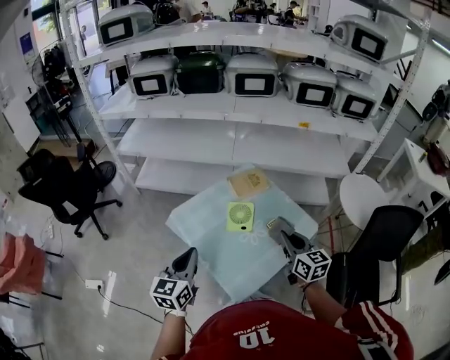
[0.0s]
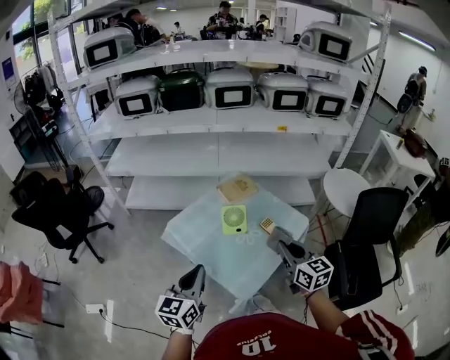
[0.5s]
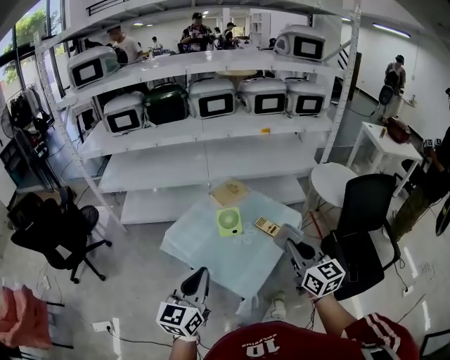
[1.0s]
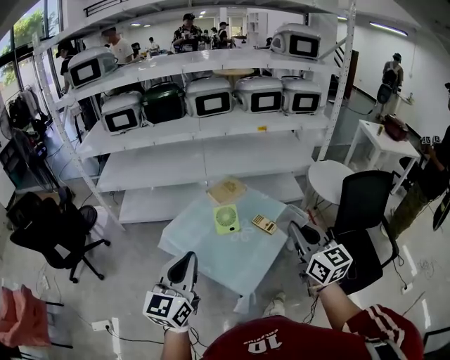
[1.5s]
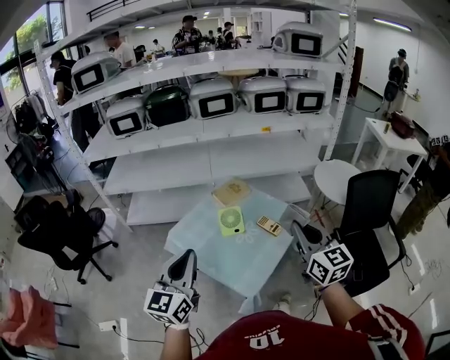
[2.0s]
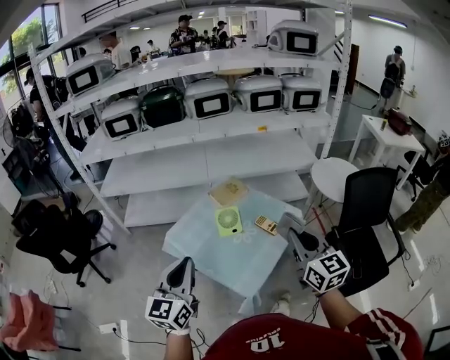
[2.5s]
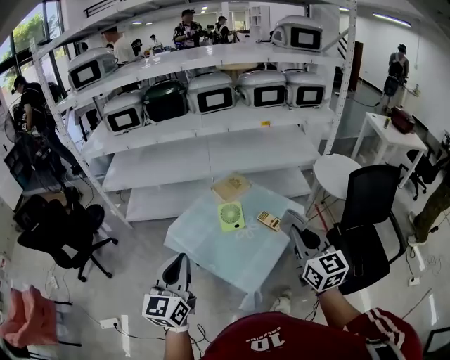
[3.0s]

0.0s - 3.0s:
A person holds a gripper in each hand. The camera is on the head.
0.0s - 1.5s: The grippers both shift upward and backward by about 20 cm. The left gripper rotates approximately 20 degrees; the right gripper turns by roughly 20 degrees.
1.5s - 3.0s: The grippers stay close to where they were, moving slightly.

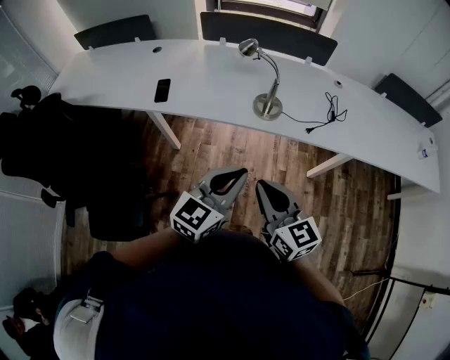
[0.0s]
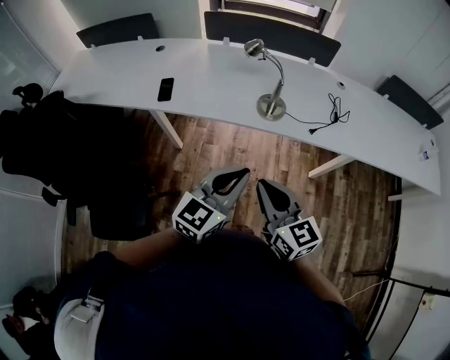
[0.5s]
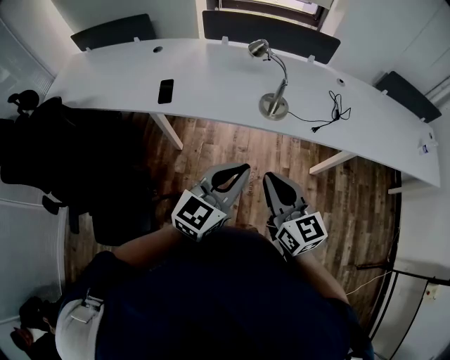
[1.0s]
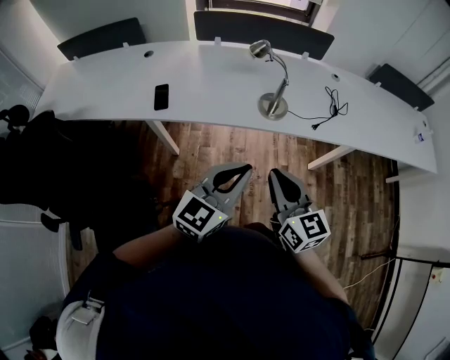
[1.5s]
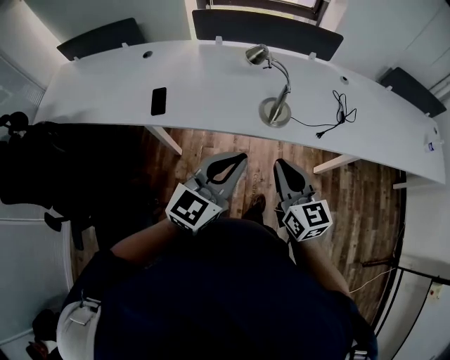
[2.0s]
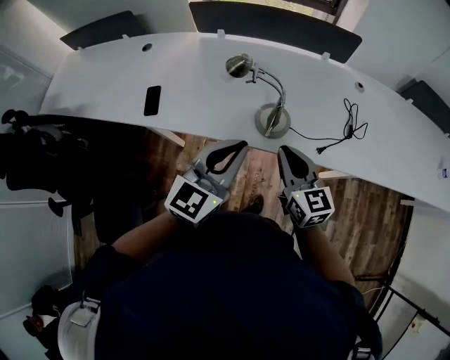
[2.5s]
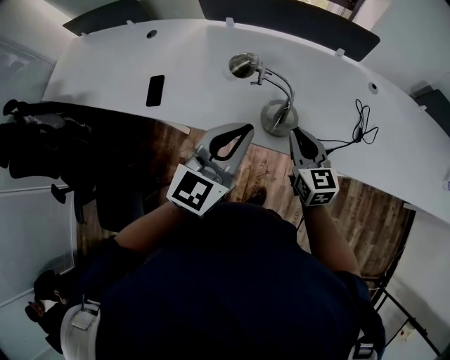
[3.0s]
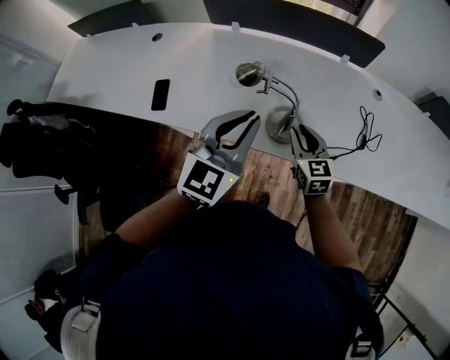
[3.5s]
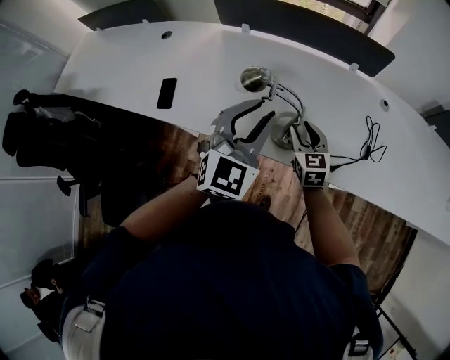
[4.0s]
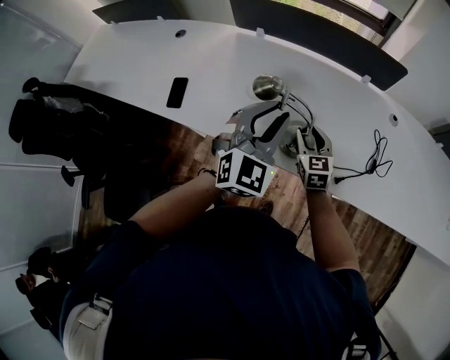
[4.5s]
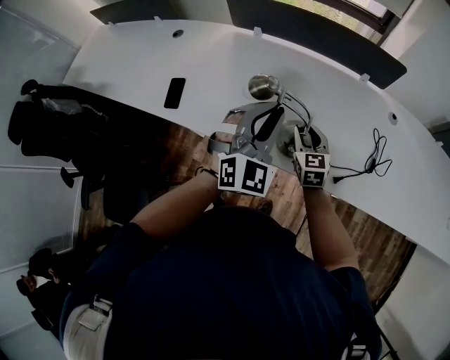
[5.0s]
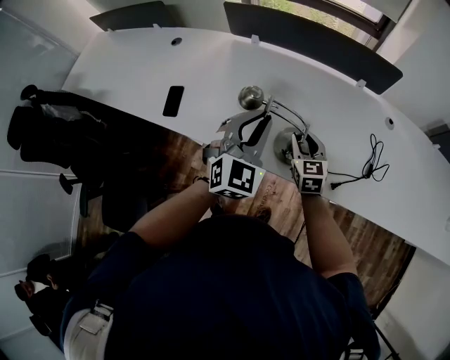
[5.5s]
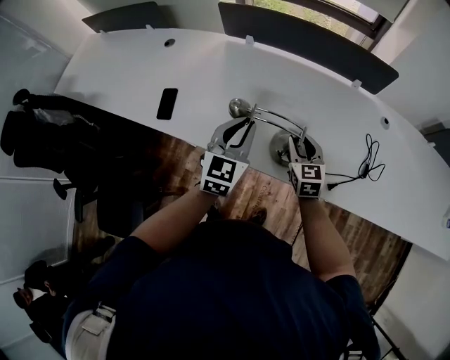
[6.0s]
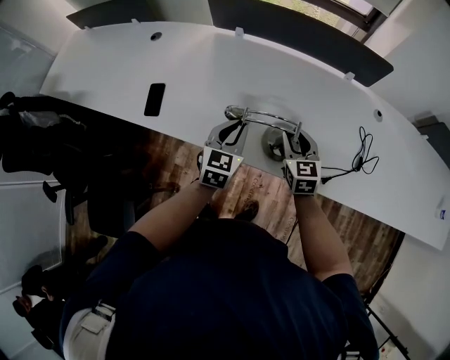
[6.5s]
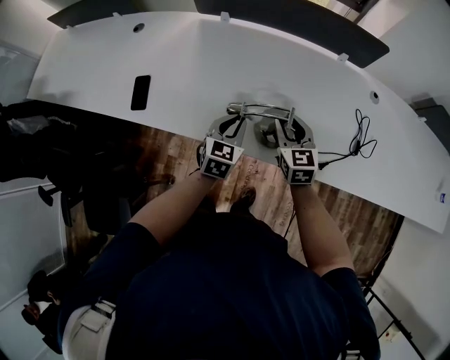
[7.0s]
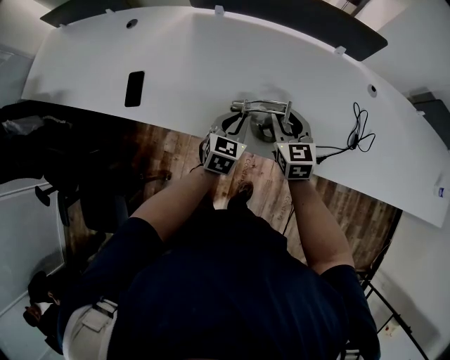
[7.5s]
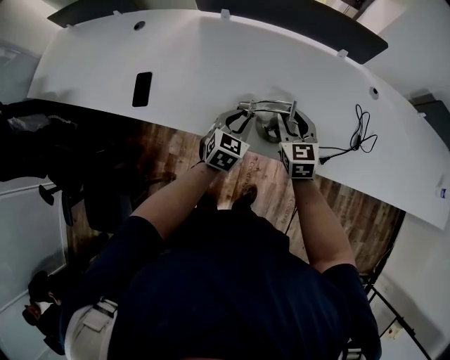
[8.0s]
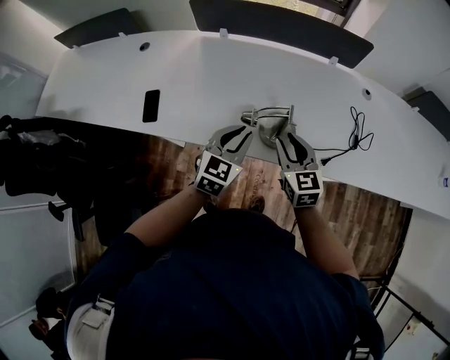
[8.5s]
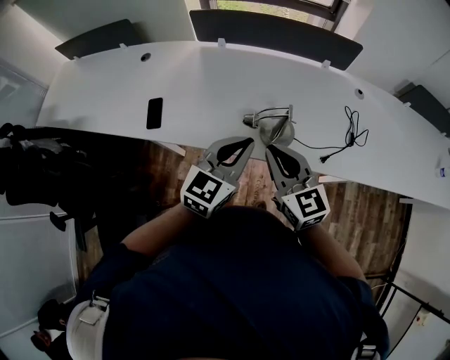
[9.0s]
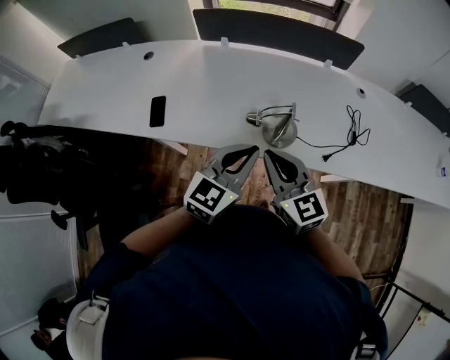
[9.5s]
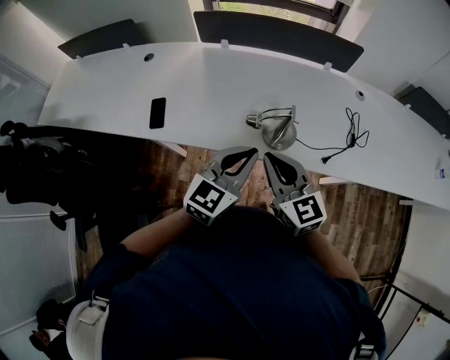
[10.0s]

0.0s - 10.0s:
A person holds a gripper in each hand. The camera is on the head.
0.0s - 2.0s: The right gripper heads forward, covering about 15 cm. Meanwhile the left gripper moves forward and to the left, about 15 cm.
2.0s - 4.0s: The left gripper is displaced forward by about 25 cm, rotates approximately 30 degrees, and opens up. Meanwhile the right gripper shifts some 35 cm forward and downward, rotates some 20 degrees, and opens up.
4.0s - 6.0s: The left gripper is displaced downward, to the left and forward by about 10 cm, and swivels about 20 degrees.
6.0s - 8.0s: The left gripper shifts roughly 15 cm downward, and changes its angle by roughly 20 degrees.
8.0s - 10.0s: The right gripper is displaced backward, upward and to the left by some 25 cm, rotates some 20 degrees, and closes, while the left gripper shifts some 25 cm upward and backward, and turns by roughly 30 degrees.

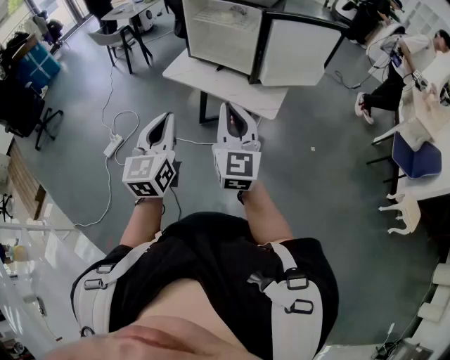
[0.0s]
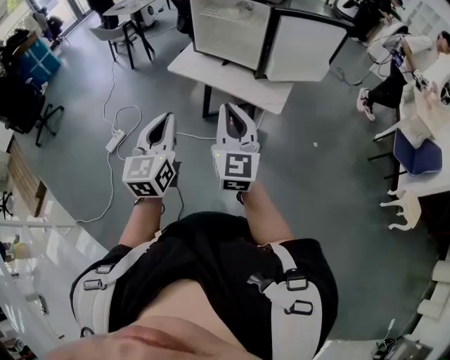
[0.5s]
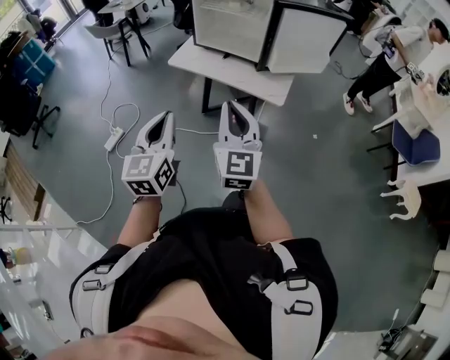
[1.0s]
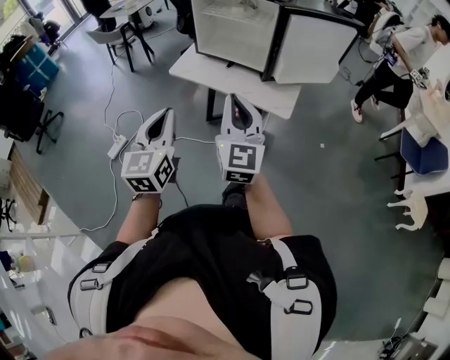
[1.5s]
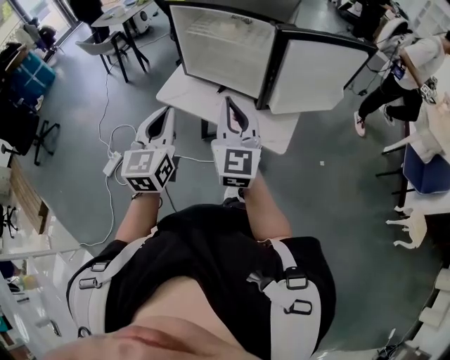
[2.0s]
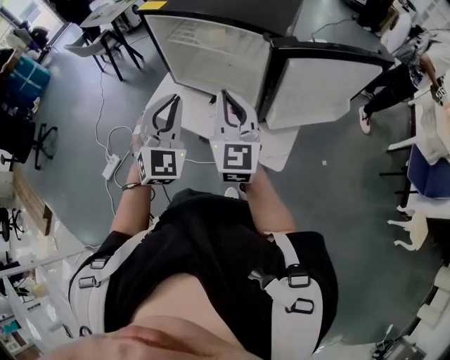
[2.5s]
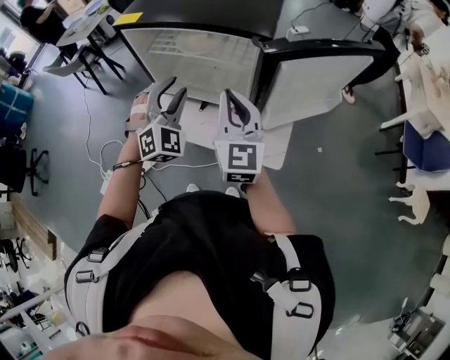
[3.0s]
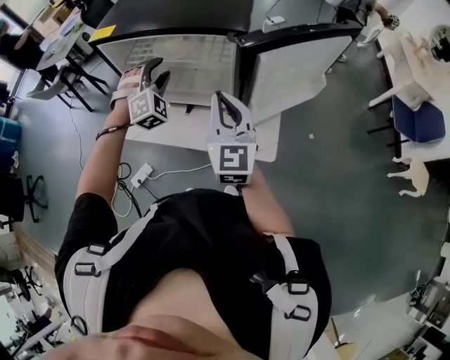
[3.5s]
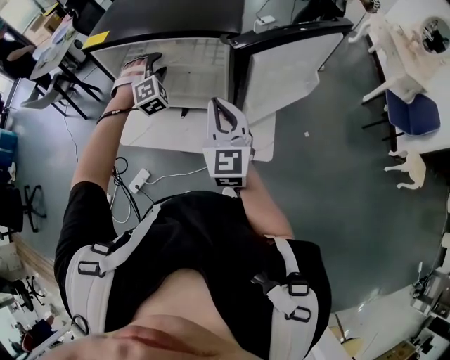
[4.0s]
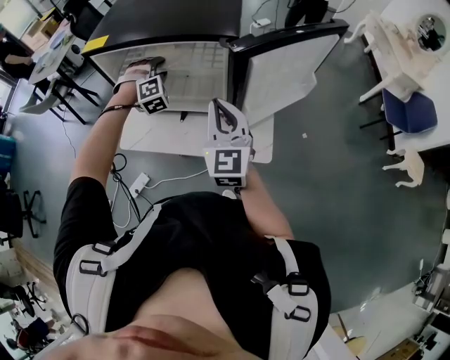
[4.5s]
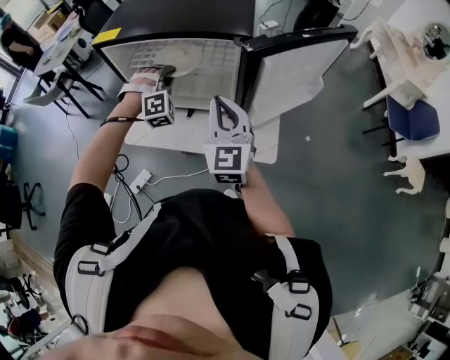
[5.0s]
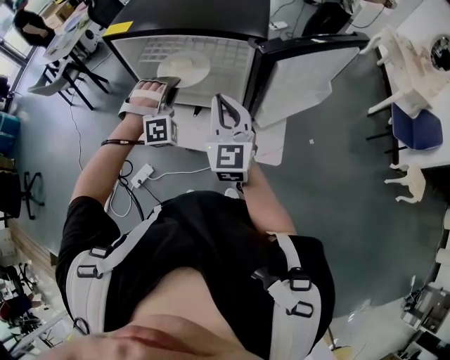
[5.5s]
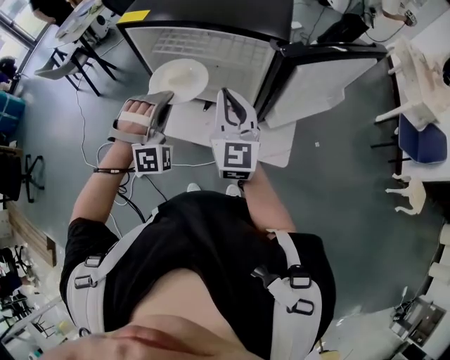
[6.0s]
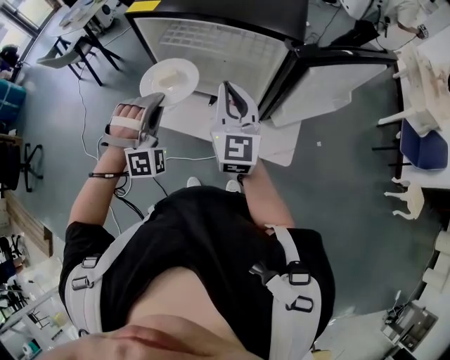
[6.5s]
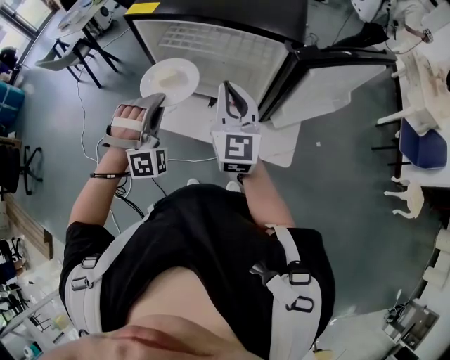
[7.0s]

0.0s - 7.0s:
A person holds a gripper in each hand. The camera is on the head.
0.0s - 2.0s: The grippers both shift forward by approximately 20 cm.
2.0s - 3.5s: The left gripper shifts about 35 cm forward, twists approximately 70 degrees clockwise, seen from behind, and opens up; the right gripper heads forward, covering some 15 cm.
3.5s - 5.0s: The left gripper closes.
5.0s - 7.0s: The right gripper shifts approximately 5 cm to the left. The left gripper moves backward and to the left, about 20 cm.

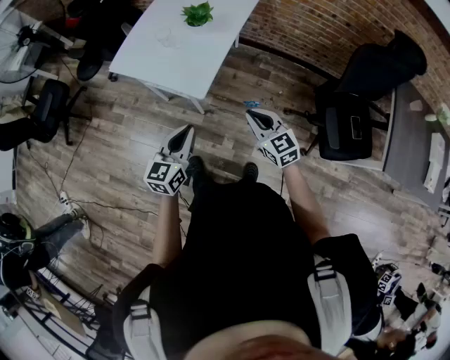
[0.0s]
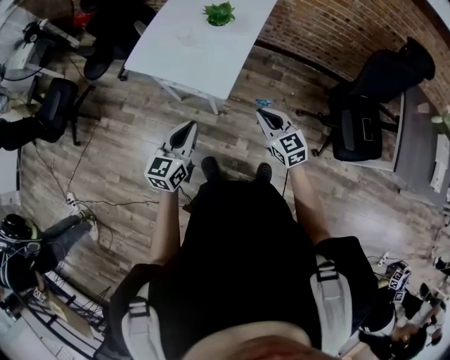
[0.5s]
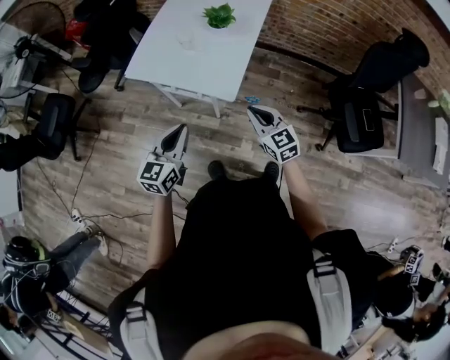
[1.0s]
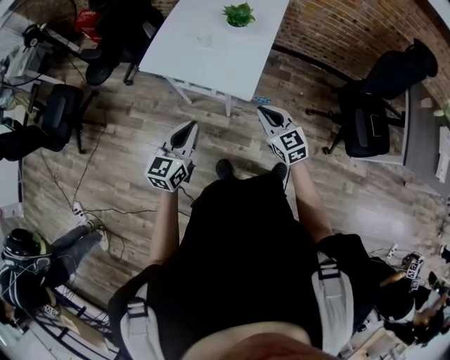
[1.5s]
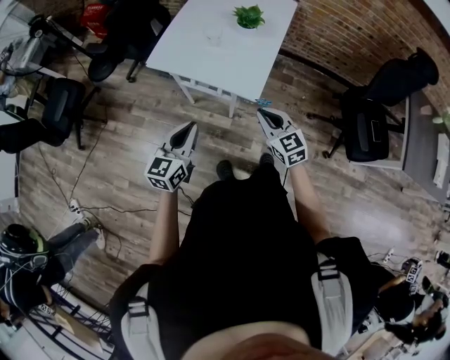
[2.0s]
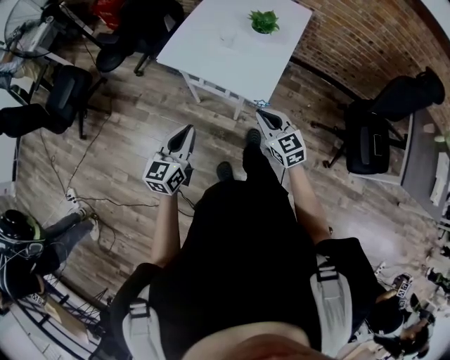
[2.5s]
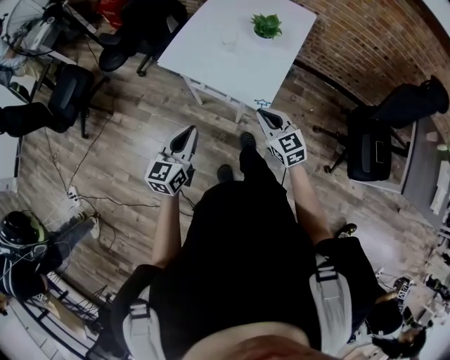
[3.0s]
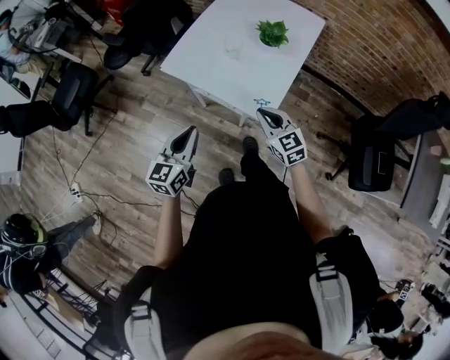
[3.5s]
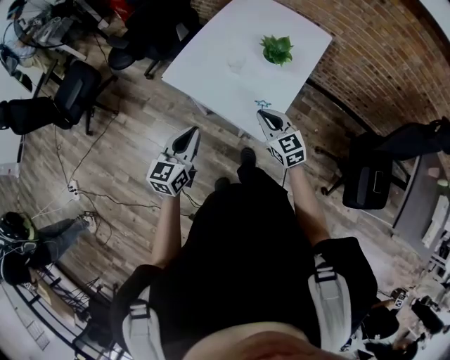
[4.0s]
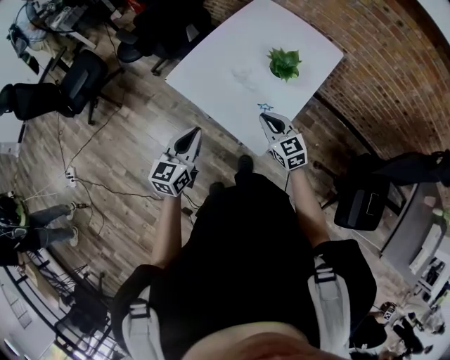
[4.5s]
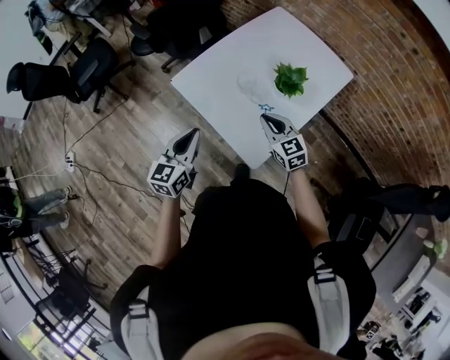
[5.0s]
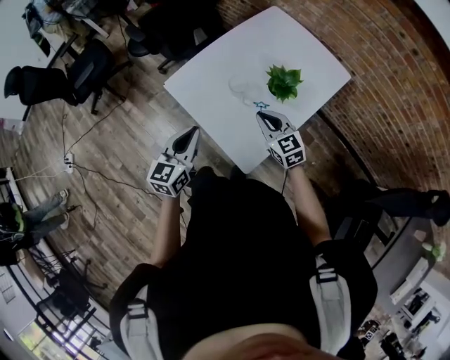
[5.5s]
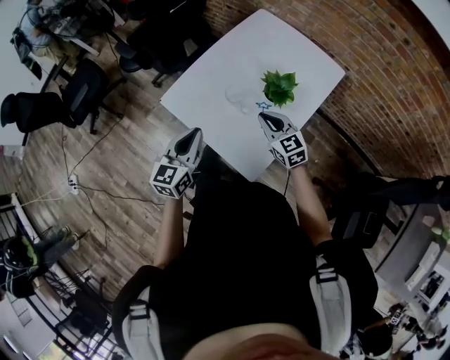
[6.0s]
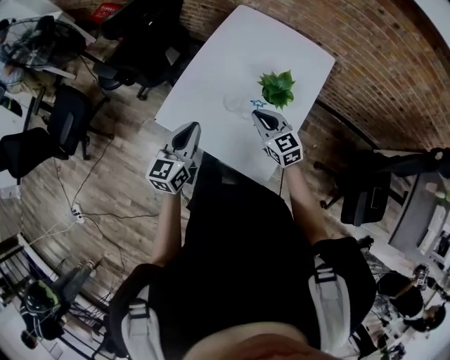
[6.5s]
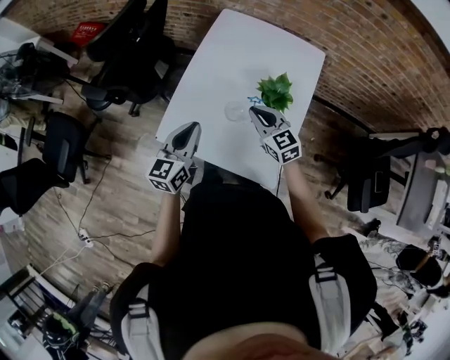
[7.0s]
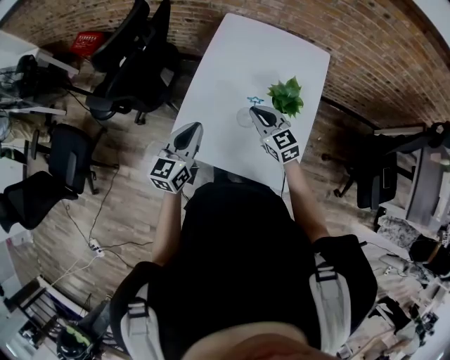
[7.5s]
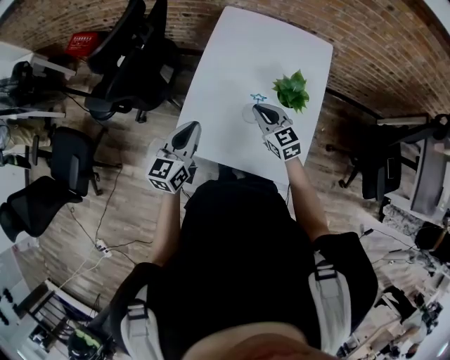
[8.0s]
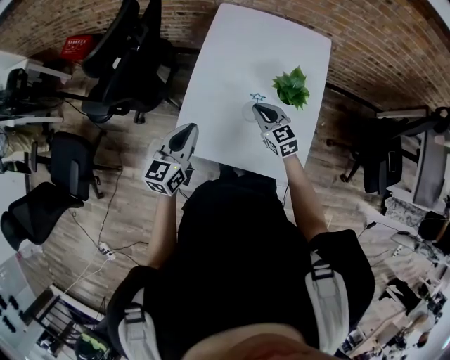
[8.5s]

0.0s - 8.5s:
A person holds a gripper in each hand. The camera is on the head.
0.0s - 2.0s: Both grippers travel together to the left, about 25 cm.
2.0s - 4.0s: Both grippers move forward, about 15 cm.
4.0s - 6.5s: The two grippers go some 25 cm forward.
6.5s - 8.5s: The left gripper shifts roughly 15 cm to the left and forward. Meanwhile the right gripper shifts some 10 cm forward, to the left and downward.
